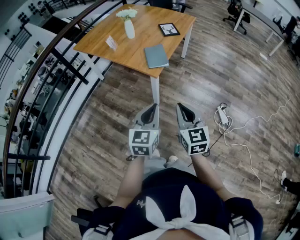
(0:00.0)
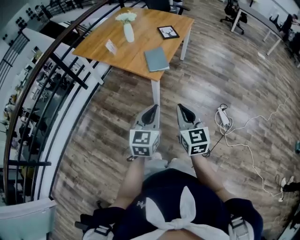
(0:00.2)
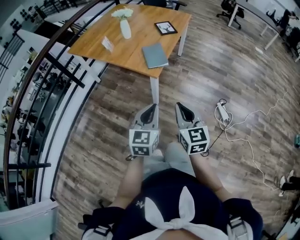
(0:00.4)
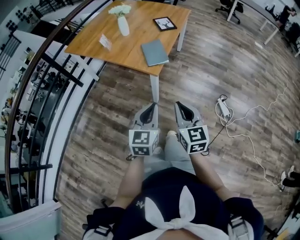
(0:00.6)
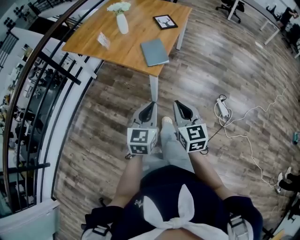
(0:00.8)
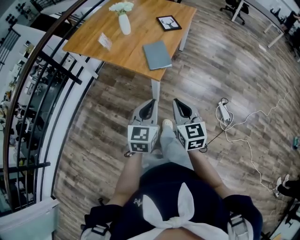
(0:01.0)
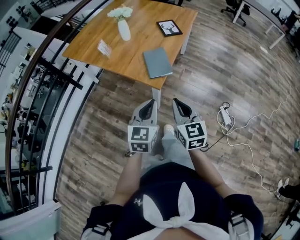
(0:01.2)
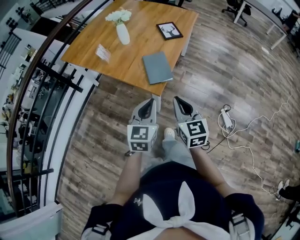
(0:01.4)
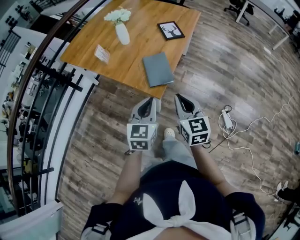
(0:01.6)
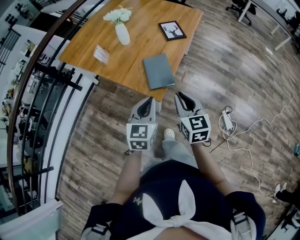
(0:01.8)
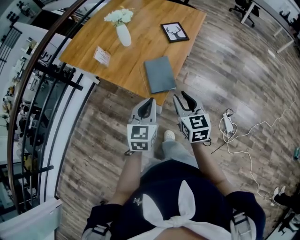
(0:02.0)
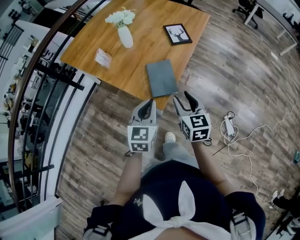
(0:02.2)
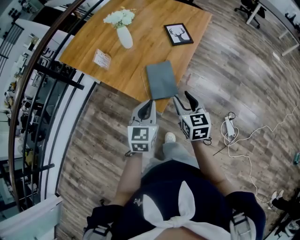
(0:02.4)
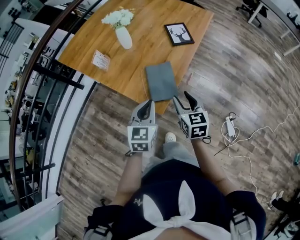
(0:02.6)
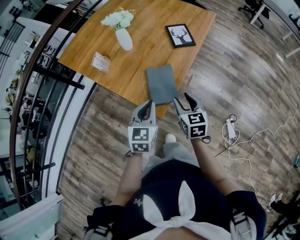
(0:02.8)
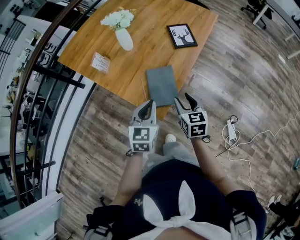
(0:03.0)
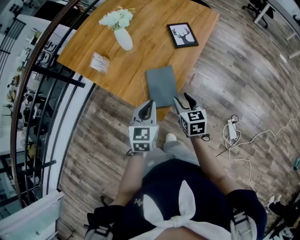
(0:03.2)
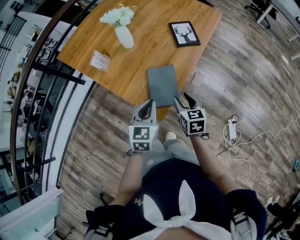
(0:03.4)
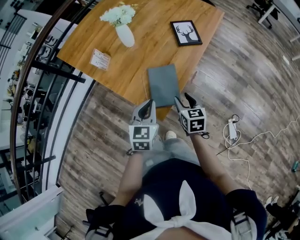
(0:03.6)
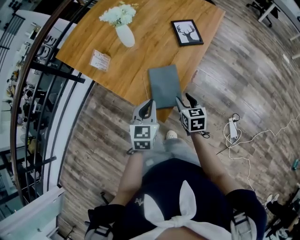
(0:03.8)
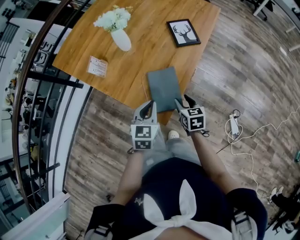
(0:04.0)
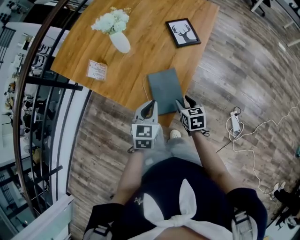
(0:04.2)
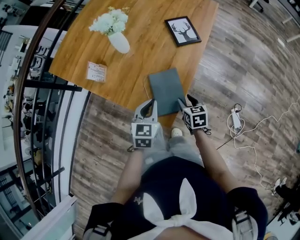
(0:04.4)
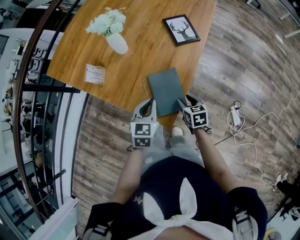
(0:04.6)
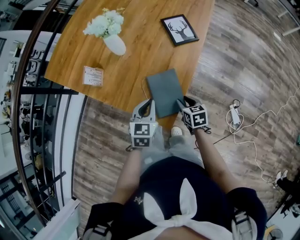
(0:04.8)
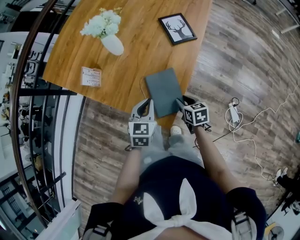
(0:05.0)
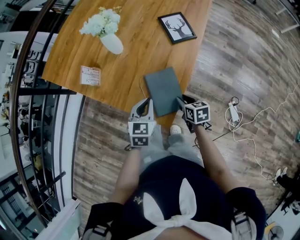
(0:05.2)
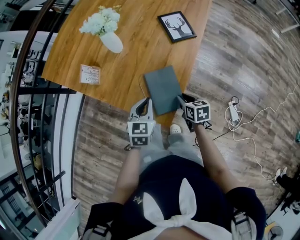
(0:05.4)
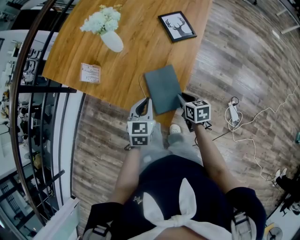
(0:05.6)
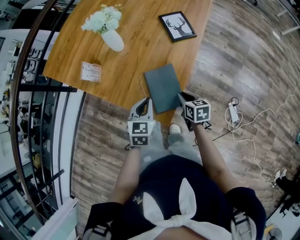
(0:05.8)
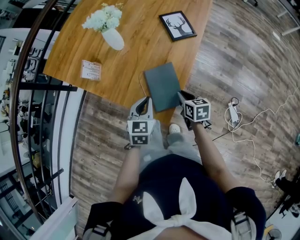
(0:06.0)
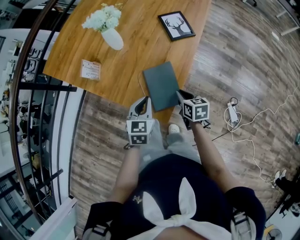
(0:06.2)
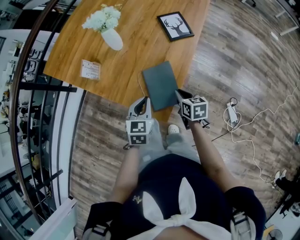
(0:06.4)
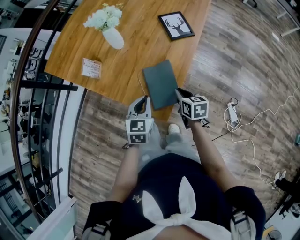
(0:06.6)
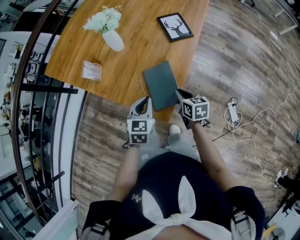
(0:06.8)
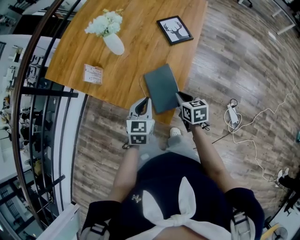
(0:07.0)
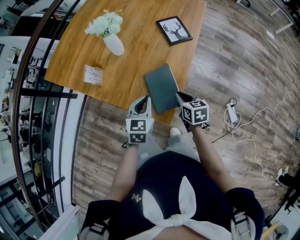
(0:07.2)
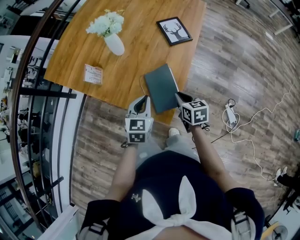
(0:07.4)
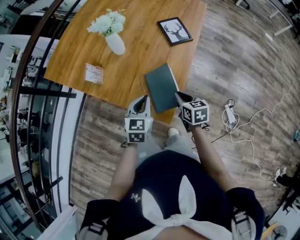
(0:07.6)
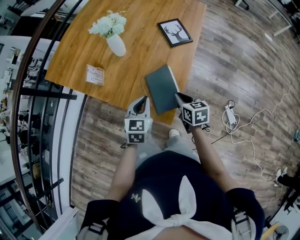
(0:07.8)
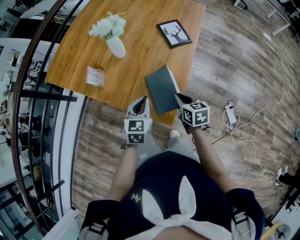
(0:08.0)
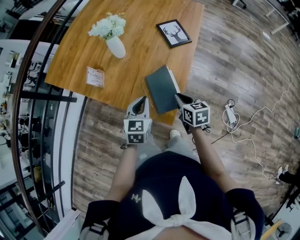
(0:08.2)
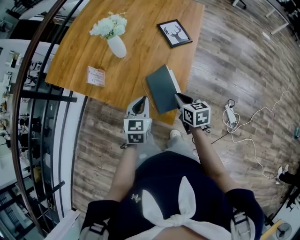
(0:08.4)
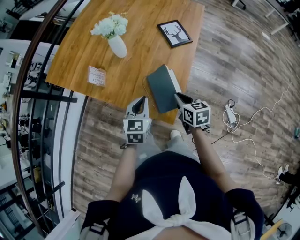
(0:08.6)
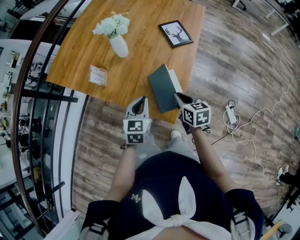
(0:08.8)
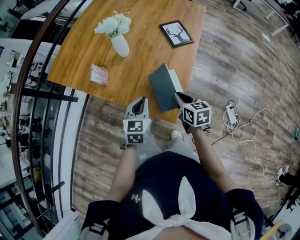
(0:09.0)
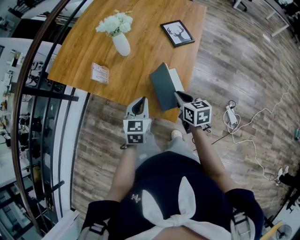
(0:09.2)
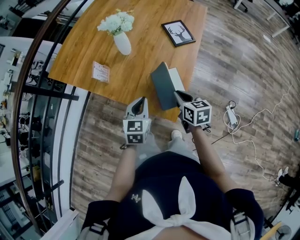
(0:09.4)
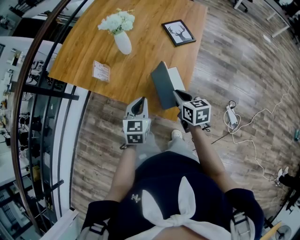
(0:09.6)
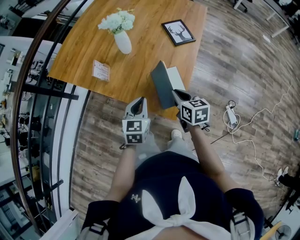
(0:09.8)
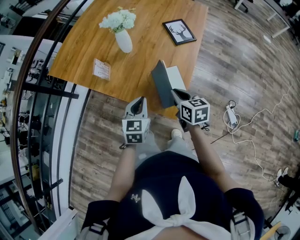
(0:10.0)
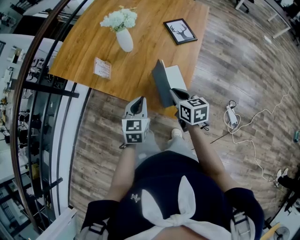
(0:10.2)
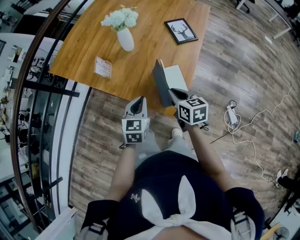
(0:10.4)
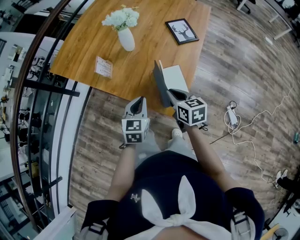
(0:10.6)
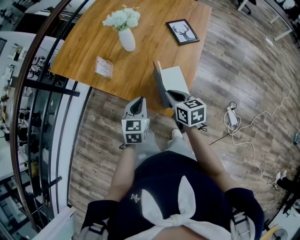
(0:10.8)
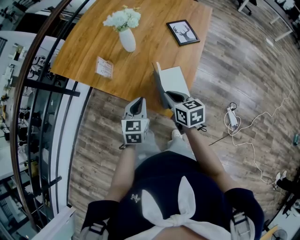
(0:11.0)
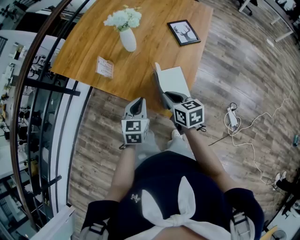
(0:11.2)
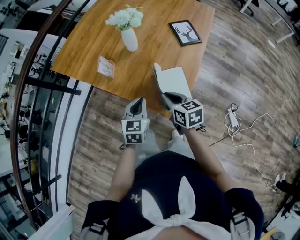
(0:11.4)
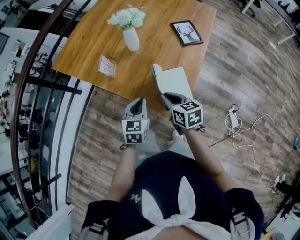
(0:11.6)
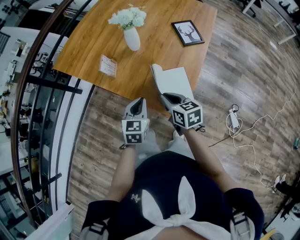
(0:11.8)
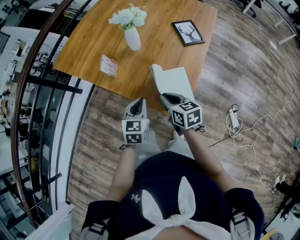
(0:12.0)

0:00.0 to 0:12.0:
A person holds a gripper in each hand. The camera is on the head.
0:00.0 to 0:01.6: The two grippers go roughly 25 cm forward.
0:01.6 to 0:03.0: The right gripper travels forward and downward by about 25 cm, and opens its fingers. The left gripper goes about 15 cm forward.
0:03.0 to 0:04.4: The right gripper heads downward and forward, covering approximately 15 cm; the left gripper heads forward and downward, covering roughly 10 cm.
0:04.4 to 0:06.0: The right gripper closes up.
0:06.0 to 0:07.6: The right gripper travels upward by some 5 cm.
0:07.6 to 0:09.0: The grippers stay close to where they were, moving slightly.
0:09.0 to 0:10.4: The right gripper travels to the left by approximately 5 cm.
0:10.4 to 0:12.0: The right gripper travels to the left by some 5 cm.

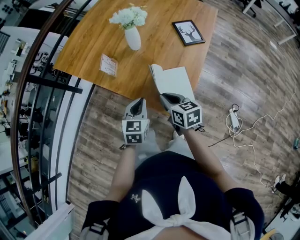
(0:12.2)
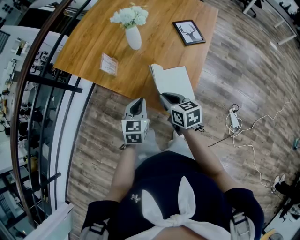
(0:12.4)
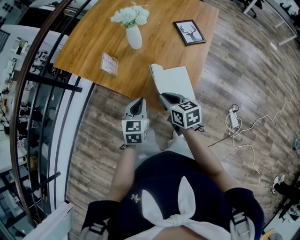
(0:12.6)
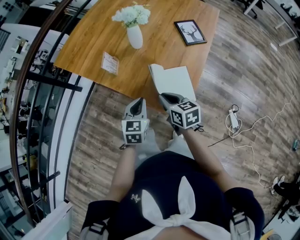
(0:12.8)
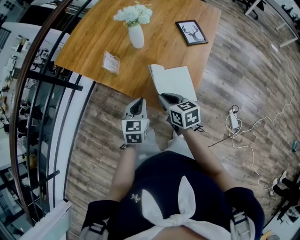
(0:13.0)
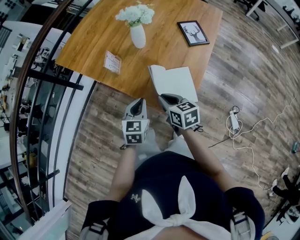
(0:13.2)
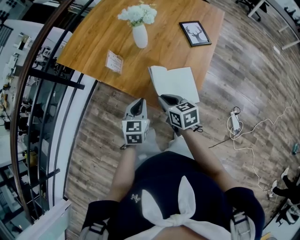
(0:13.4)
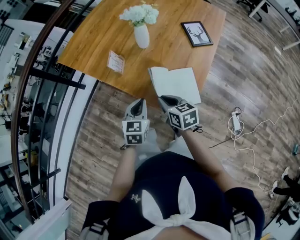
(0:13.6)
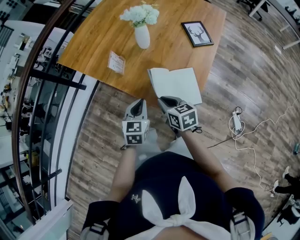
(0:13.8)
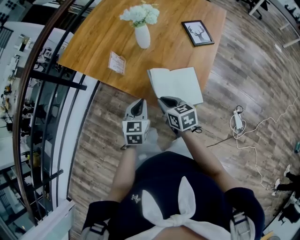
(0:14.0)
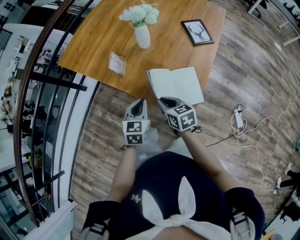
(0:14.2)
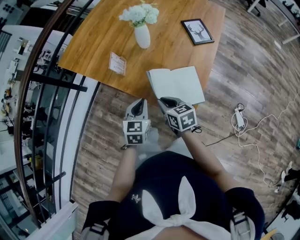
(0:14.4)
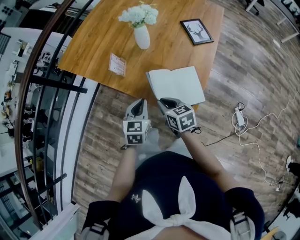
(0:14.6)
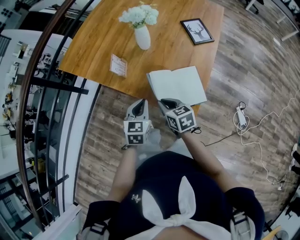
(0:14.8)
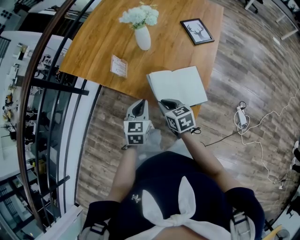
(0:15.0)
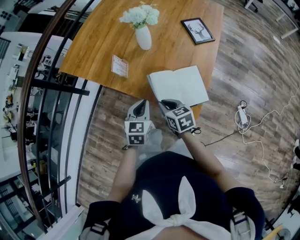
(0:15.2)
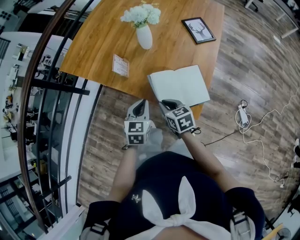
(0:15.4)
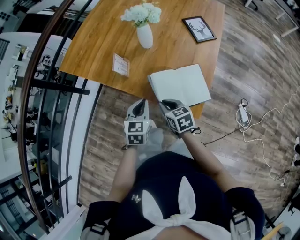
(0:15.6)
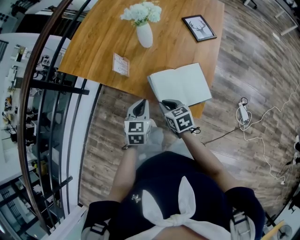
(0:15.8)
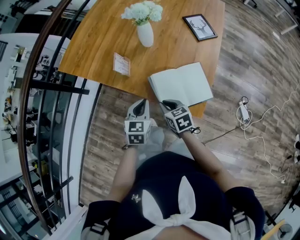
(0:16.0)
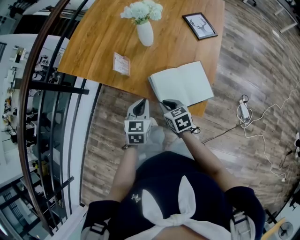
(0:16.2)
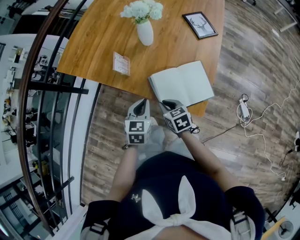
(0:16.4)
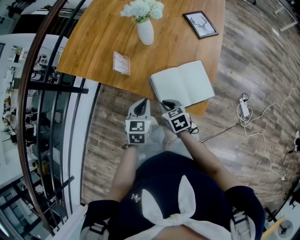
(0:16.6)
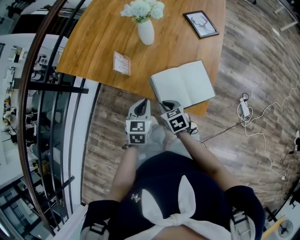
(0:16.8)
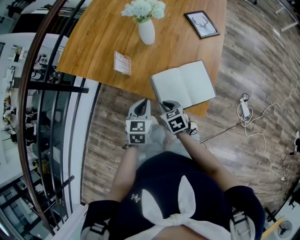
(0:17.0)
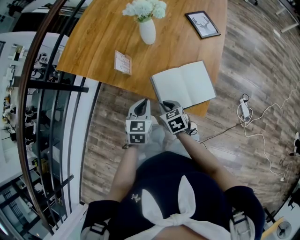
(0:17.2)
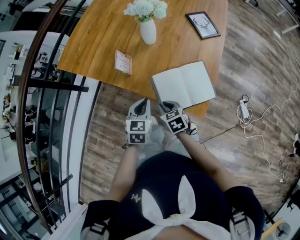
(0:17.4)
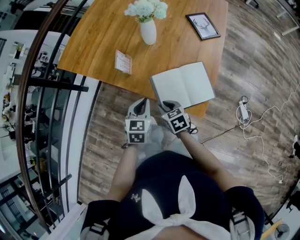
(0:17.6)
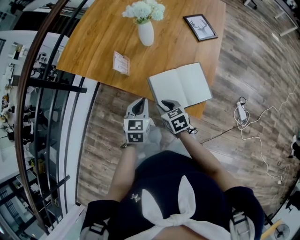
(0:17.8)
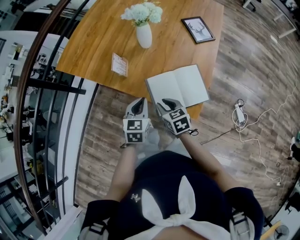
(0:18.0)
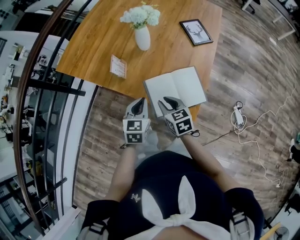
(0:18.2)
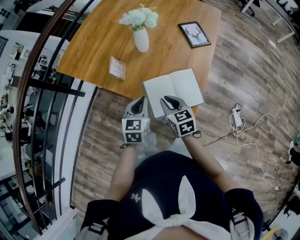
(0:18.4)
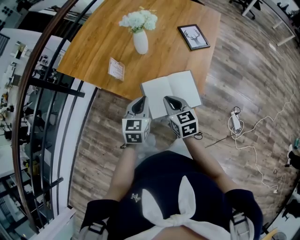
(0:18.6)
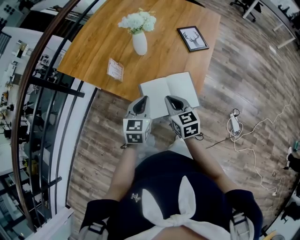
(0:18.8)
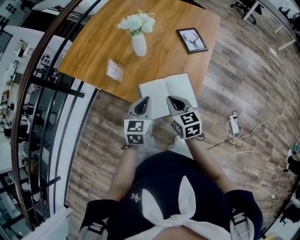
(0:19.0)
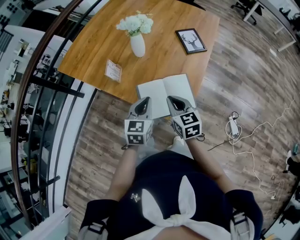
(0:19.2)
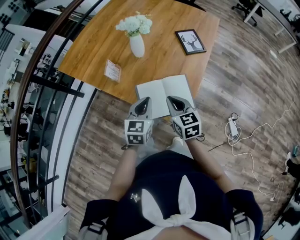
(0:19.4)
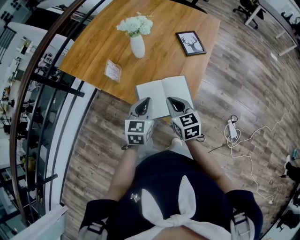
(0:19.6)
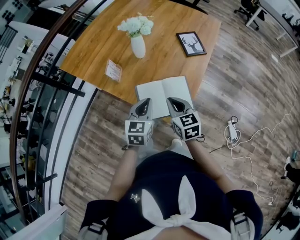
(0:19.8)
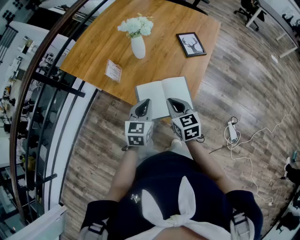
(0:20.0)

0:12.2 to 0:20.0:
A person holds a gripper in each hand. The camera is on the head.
0:12.2 to 0:13.8: The right gripper goes approximately 5 cm to the left.
0:13.8 to 0:15.4: The right gripper shifts by roughly 5 cm.
0:15.4 to 0:16.8: The right gripper is displaced downward by some 5 cm.
0:16.8 to 0:18.4: The right gripper travels upward and to the right by roughly 10 cm. The left gripper goes about 5 cm upward.
0:18.4 to 0:20.0: The right gripper moves to the right and upward, some 10 cm, while the left gripper moves to the right, approximately 10 cm.

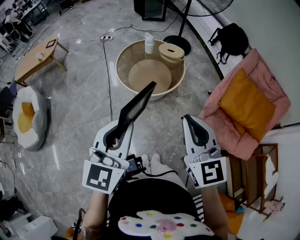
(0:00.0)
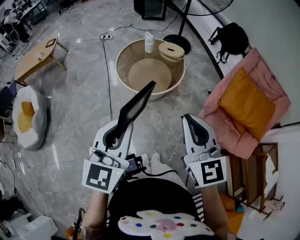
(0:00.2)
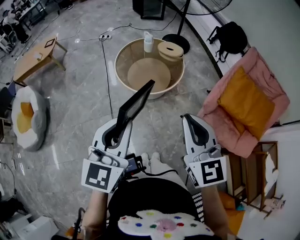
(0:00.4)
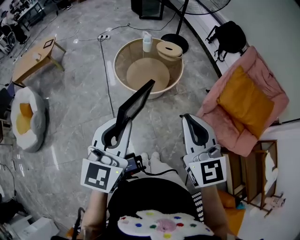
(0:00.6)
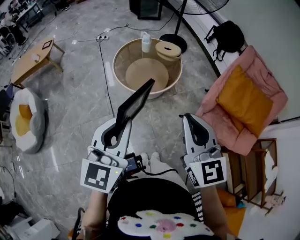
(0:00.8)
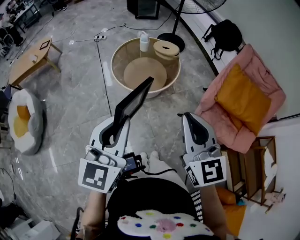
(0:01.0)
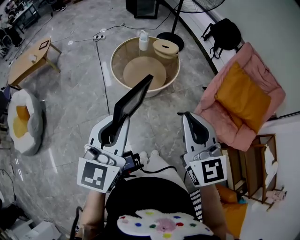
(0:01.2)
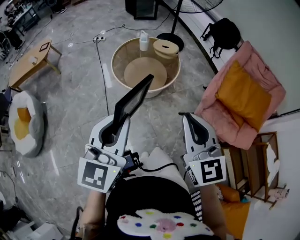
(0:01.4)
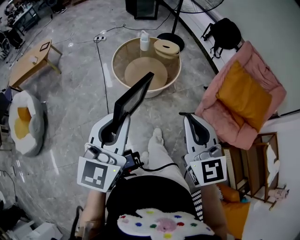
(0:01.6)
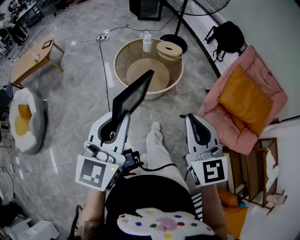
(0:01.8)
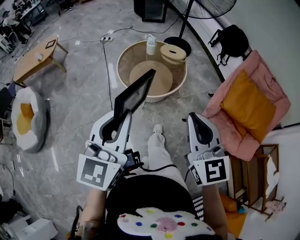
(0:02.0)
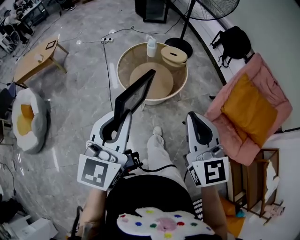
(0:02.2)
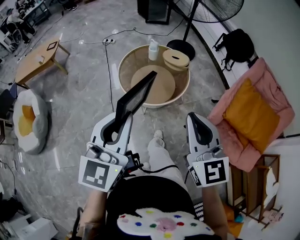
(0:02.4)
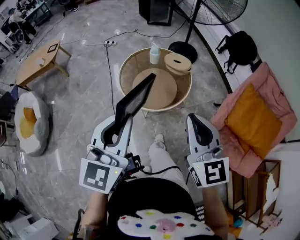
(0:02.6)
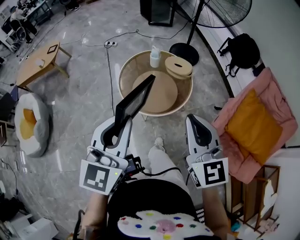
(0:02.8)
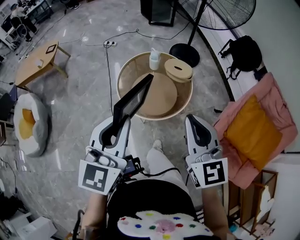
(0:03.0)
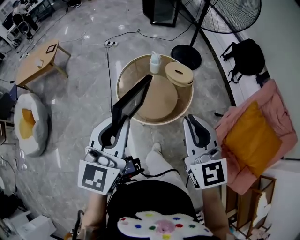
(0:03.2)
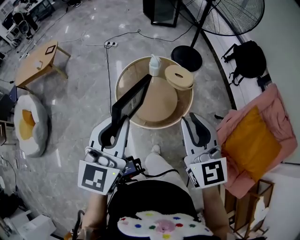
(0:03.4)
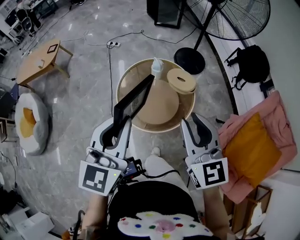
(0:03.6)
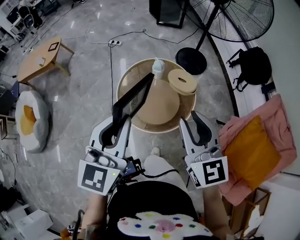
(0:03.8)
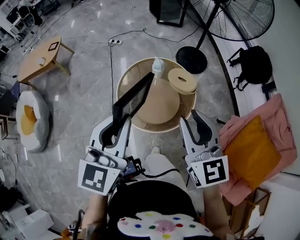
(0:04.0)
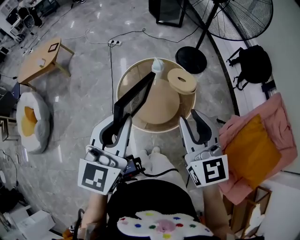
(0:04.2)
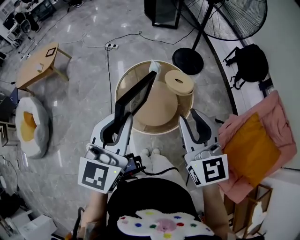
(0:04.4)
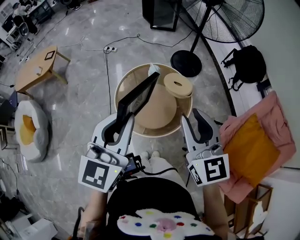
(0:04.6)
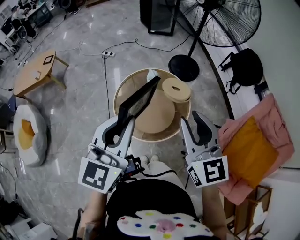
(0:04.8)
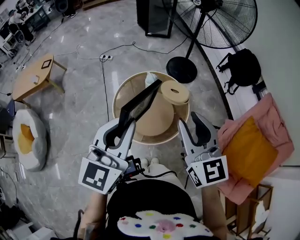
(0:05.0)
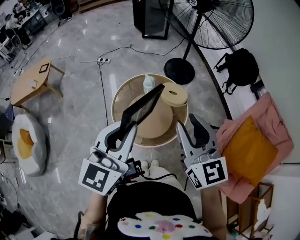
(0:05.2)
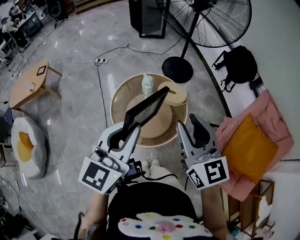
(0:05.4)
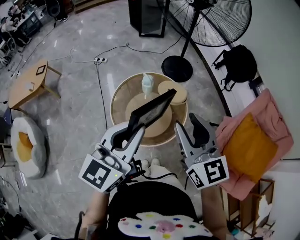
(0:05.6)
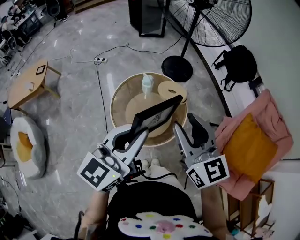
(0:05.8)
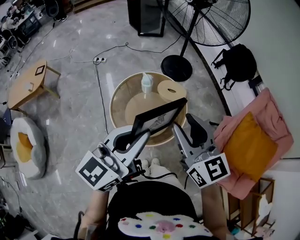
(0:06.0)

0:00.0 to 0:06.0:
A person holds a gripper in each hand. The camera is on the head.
0:00.0 to 0:01.6: The grippers stay close to where they were, moving slightly.
0:01.6 to 0:03.0: Both grippers move forward, approximately 20 cm.
0:03.0 to 0:04.4: The grippers both shift forward by about 10 cm.
0:04.4 to 0:06.0: The left gripper rotates approximately 30 degrees.
